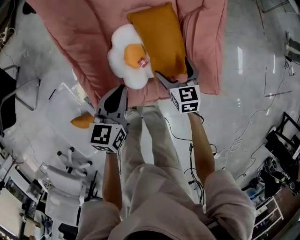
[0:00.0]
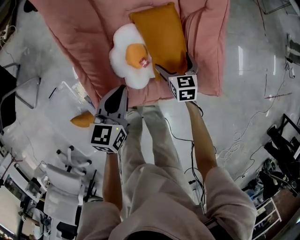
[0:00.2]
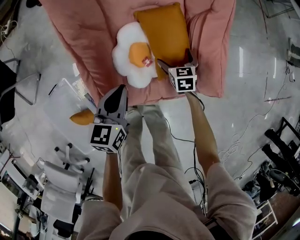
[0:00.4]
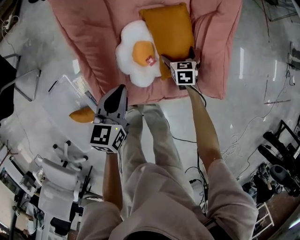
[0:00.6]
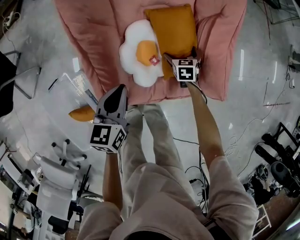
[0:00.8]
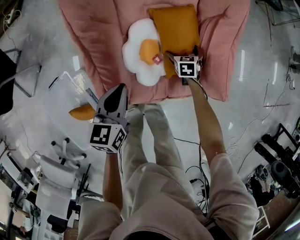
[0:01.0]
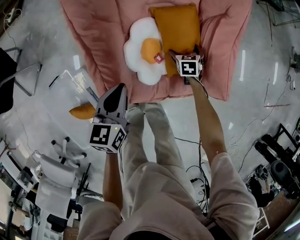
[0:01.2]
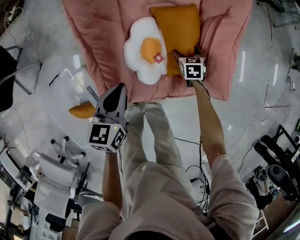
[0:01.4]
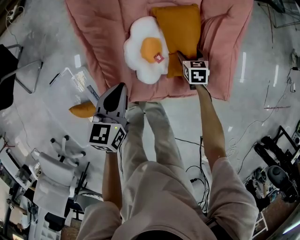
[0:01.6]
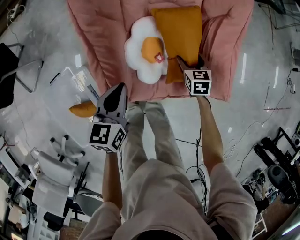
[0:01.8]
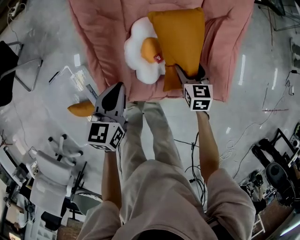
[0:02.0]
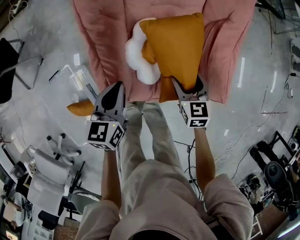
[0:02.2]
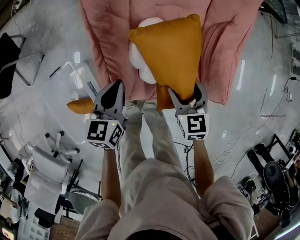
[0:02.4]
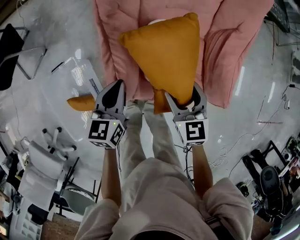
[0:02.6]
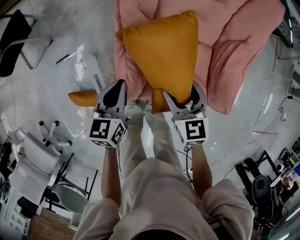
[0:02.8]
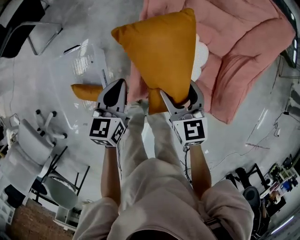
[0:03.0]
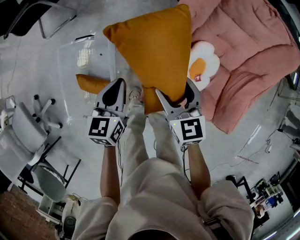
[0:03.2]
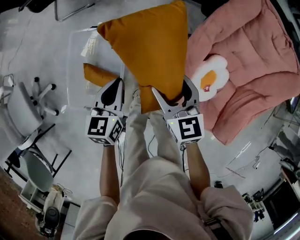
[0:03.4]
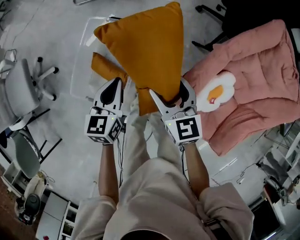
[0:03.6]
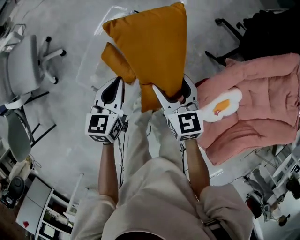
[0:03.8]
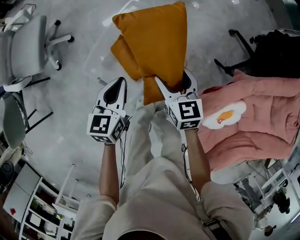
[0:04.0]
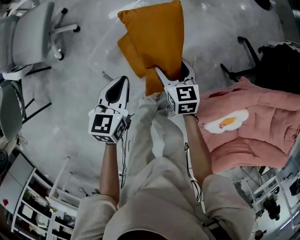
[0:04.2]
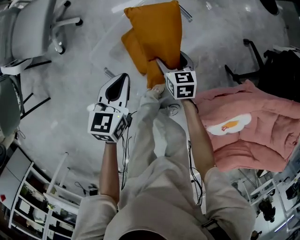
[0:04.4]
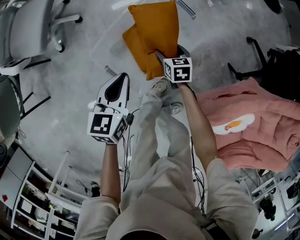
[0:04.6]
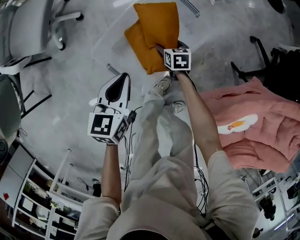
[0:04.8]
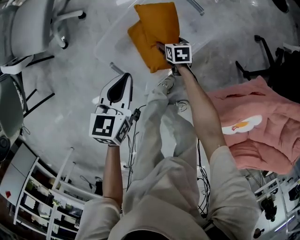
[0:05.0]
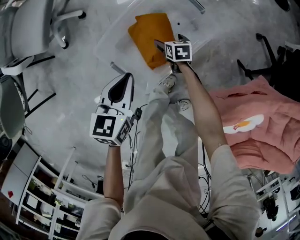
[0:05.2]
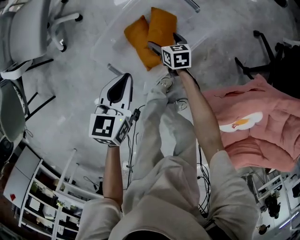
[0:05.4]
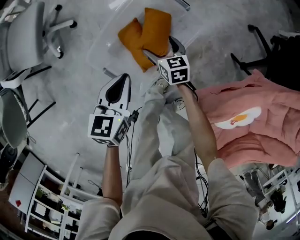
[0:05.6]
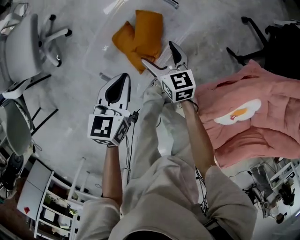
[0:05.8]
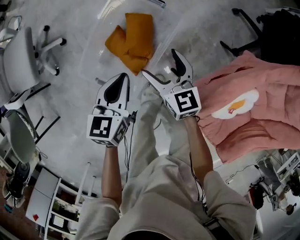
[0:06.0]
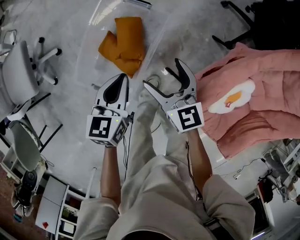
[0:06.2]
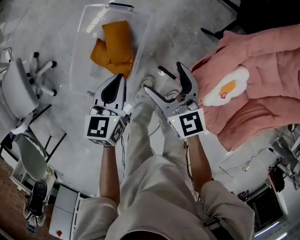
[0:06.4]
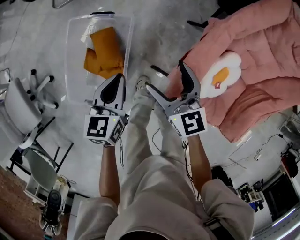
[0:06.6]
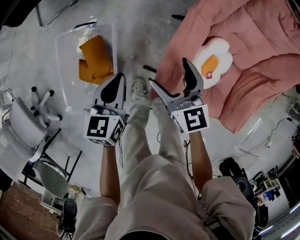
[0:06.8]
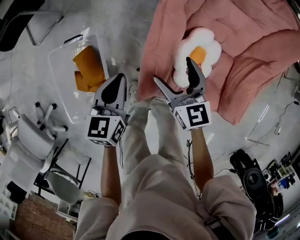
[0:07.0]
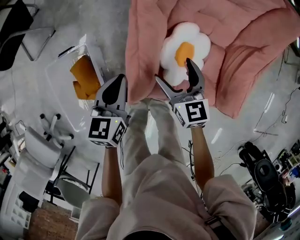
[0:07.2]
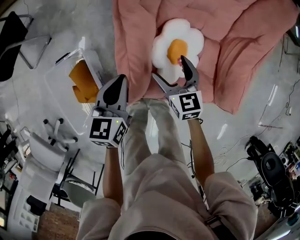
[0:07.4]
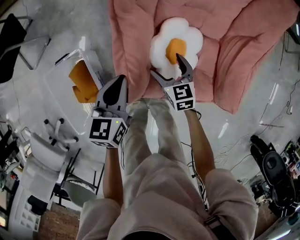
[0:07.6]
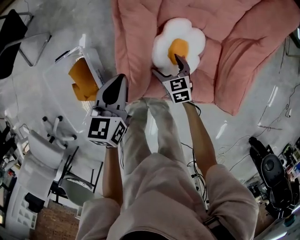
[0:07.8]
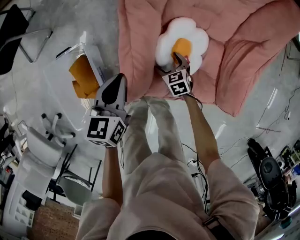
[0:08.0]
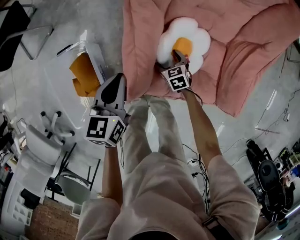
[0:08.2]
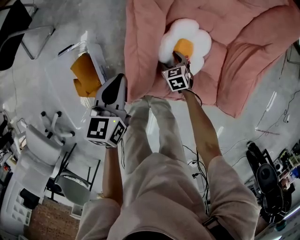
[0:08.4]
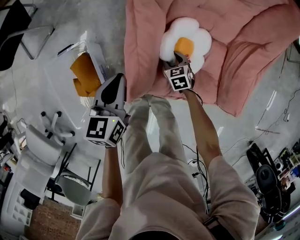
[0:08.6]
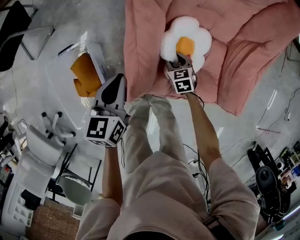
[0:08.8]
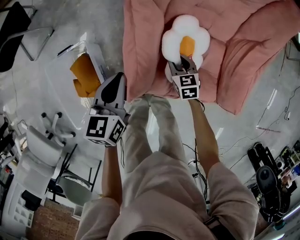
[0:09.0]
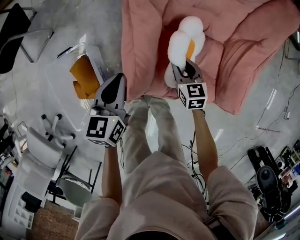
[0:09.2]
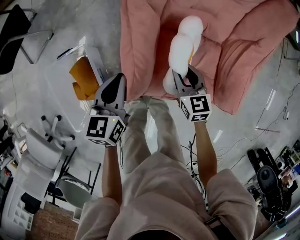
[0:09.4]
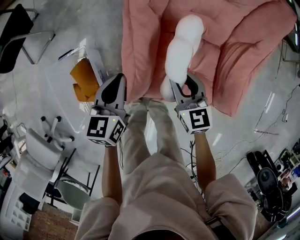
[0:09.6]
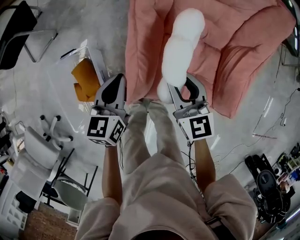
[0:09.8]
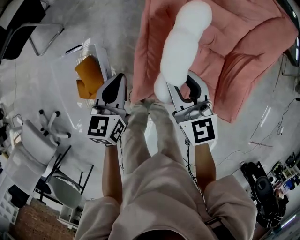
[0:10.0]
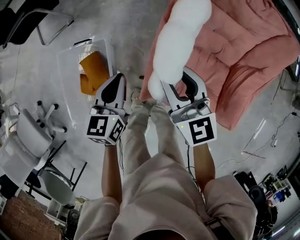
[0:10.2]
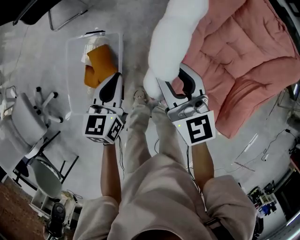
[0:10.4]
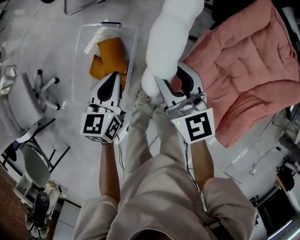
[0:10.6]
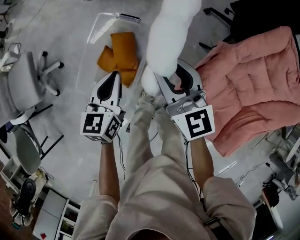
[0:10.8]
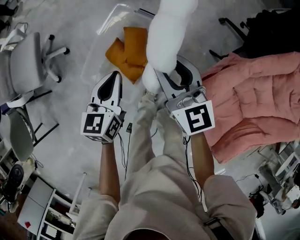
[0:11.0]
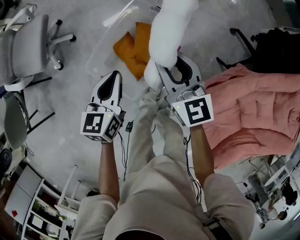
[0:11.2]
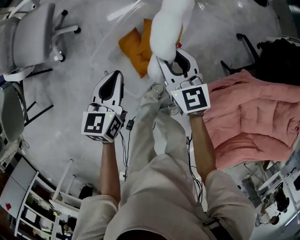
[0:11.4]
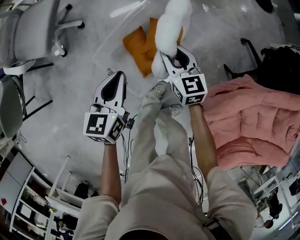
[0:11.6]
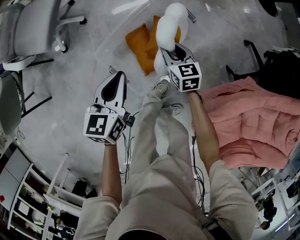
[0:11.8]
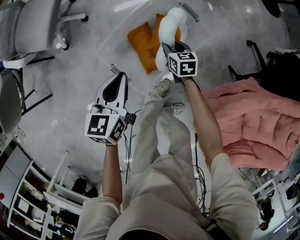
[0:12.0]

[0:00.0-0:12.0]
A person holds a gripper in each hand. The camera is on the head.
0:00.0 to 0:01.6: The right gripper moves downward and forward, approximately 10 cm. Meanwhile the left gripper goes roughly 5 cm to the left.
0:01.6 to 0:03.0: The right gripper changes place by about 35 cm, and turns by approximately 40 degrees, while the left gripper moves roughly 15 cm.
0:03.0 to 0:04.4: Both grippers are carried roughly 50 cm. The left gripper turns by approximately 50 degrees. The right gripper changes its angle by approximately 50 degrees.
0:04.4 to 0:06.0: The left gripper shifts some 10 cm to the right. Meanwhile the right gripper is displaced to the right by about 5 cm, reaches about 15 cm downward, then returns, and turns by roughly 20 degrees.
0:06.0 to 0:07.6: The two grippers travel together, roughly 50 cm. The left gripper changes its angle by roughly 50 degrees; the right gripper changes its angle by about 50 degrees.
0:07.6 to 0:09.0: The right gripper travels downward by roughly 5 cm, and closes up.
0:09.0 to 0:10.4: The left gripper goes roughly 15 cm to the left, and rotates some 20 degrees, while the right gripper shifts some 40 cm upward and to the left, and tilts its fingers roughly 40 degrees upward.
0:10.4 to 0:12.0: The two grippers travel together, some 40 cm. The left gripper rotates approximately 40 degrees. The right gripper tips its fingers downward by approximately 40 degrees.

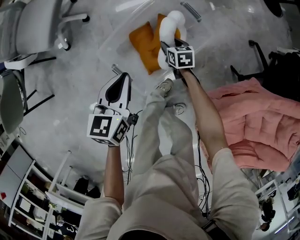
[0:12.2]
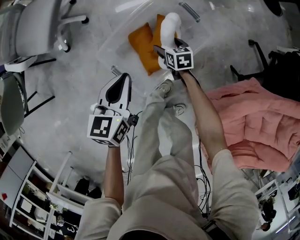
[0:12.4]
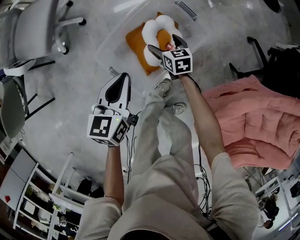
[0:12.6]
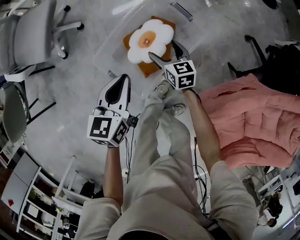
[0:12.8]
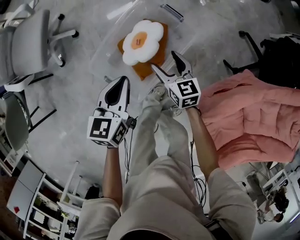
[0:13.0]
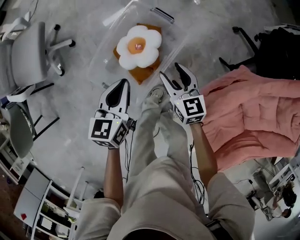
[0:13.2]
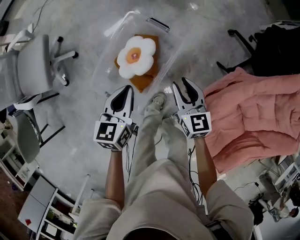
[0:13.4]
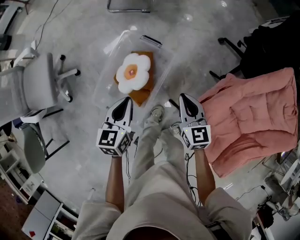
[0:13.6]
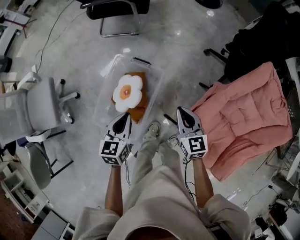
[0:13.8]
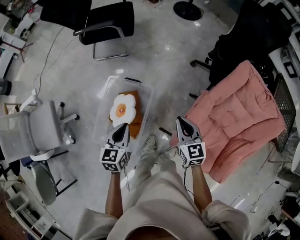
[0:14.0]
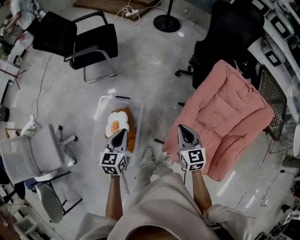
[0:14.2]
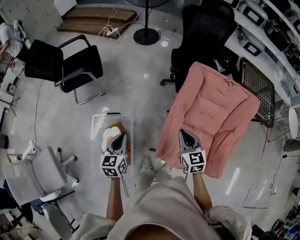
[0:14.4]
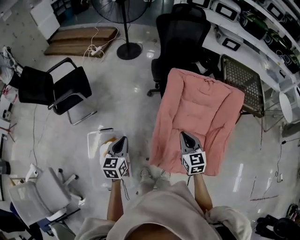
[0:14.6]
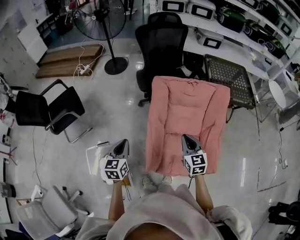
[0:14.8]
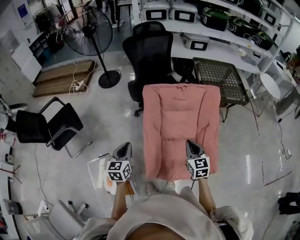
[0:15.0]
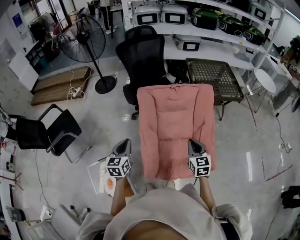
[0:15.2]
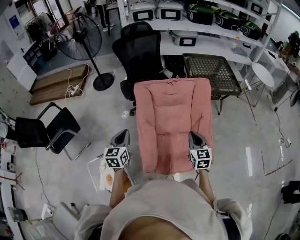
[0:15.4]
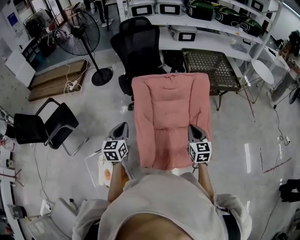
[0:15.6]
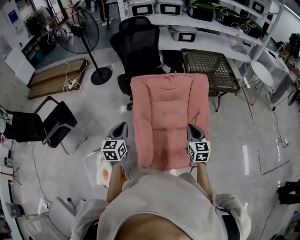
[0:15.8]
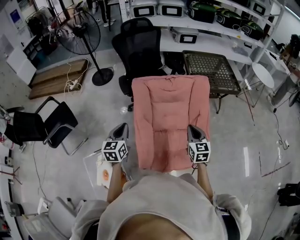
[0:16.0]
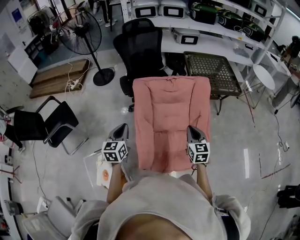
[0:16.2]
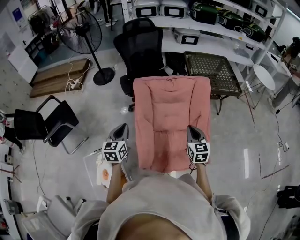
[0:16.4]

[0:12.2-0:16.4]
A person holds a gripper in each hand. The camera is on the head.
0:12.2 to 0:13.6: The left gripper ends up approximately 20 cm from where it was. Meanwhile the right gripper shifts about 30 cm upward, changes its angle by some 40 degrees, and closes up.
0:13.6 to 0:15.0: The right gripper shifts by approximately 60 cm, and rotates approximately 50 degrees. Meanwhile the left gripper moves approximately 50 cm, and changes its angle by some 50 degrees.
0:15.0 to 0:16.4: Both grippers move to the right, roughly 5 cm.

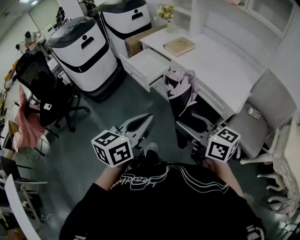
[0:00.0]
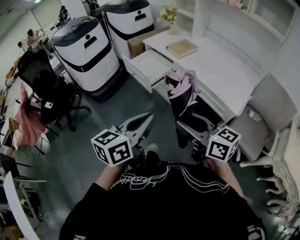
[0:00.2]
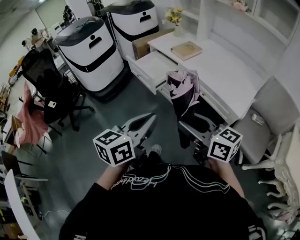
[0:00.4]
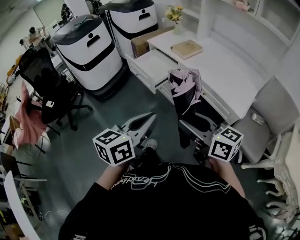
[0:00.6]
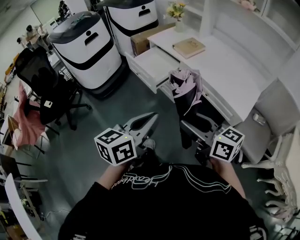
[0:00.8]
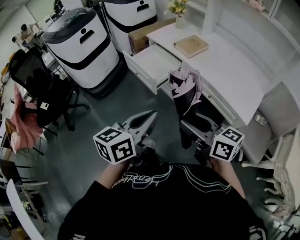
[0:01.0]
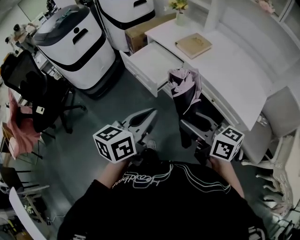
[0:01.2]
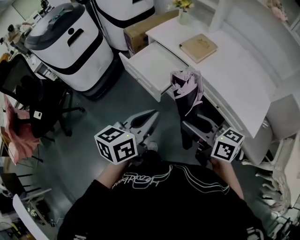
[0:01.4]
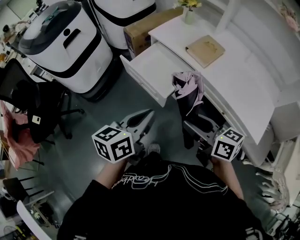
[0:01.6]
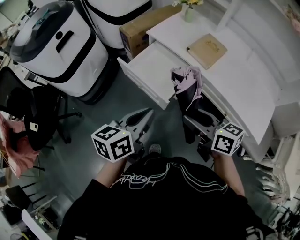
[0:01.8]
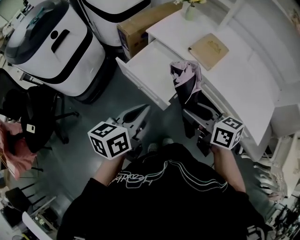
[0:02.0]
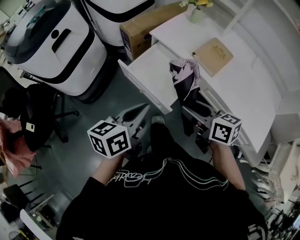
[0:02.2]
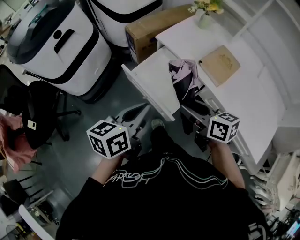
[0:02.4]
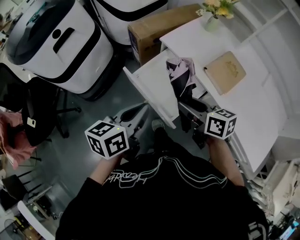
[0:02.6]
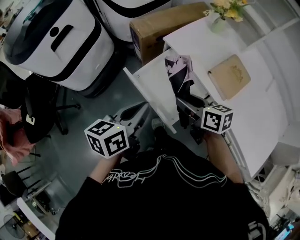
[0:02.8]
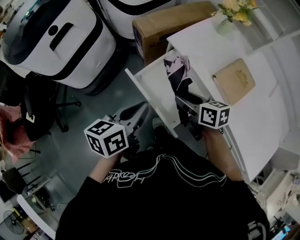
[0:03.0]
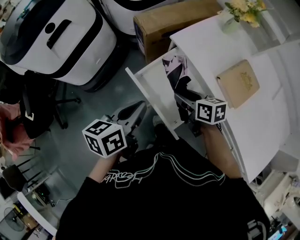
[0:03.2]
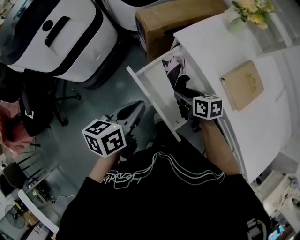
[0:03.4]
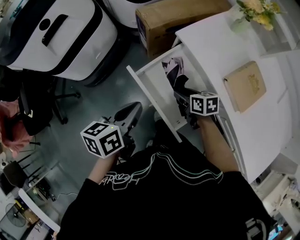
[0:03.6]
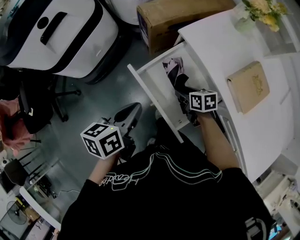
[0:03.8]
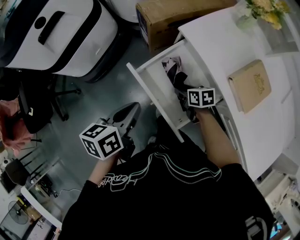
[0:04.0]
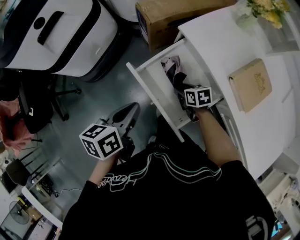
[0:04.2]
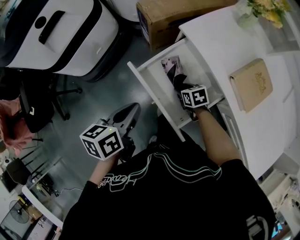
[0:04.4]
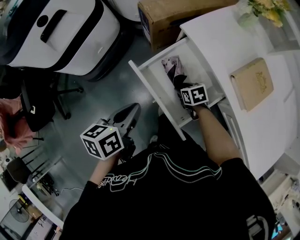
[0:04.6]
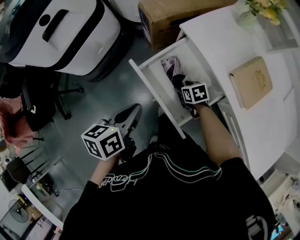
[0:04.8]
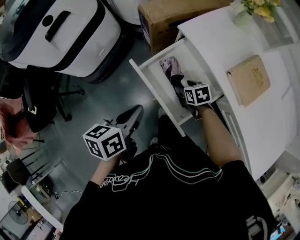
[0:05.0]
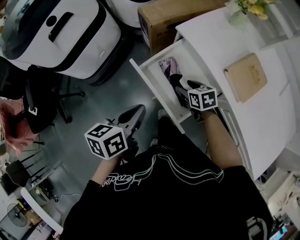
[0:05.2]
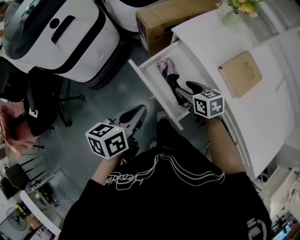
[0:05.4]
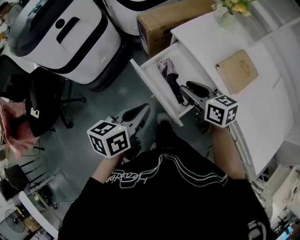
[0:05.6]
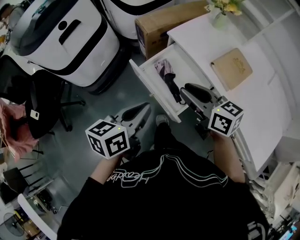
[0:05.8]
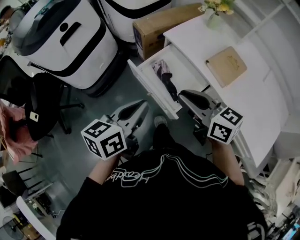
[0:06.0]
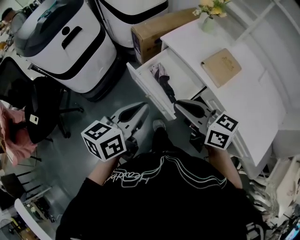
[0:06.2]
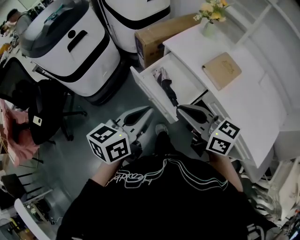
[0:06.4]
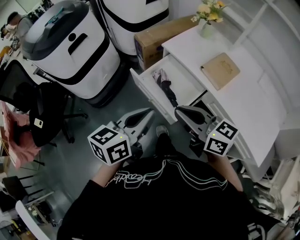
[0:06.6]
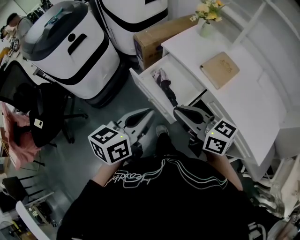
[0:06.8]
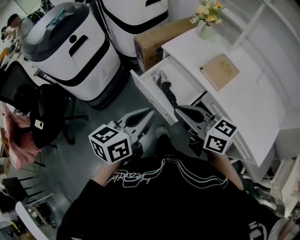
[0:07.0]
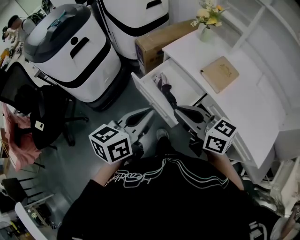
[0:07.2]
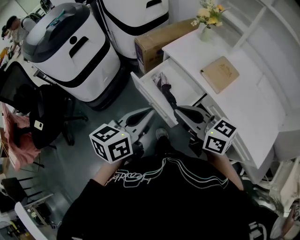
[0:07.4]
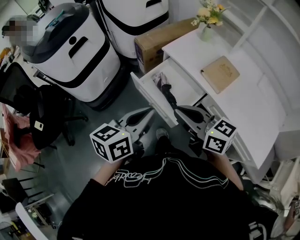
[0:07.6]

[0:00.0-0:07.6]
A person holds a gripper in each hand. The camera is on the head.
0:00.0 to 0:01.6: The left gripper travels forward and to the left by some 40 cm; the right gripper goes roughly 35 cm forward.
0:01.6 to 0:03.0: The left gripper shifts roughly 30 cm forward. The right gripper travels forward and downward by roughly 40 cm.
0:03.0 to 0:04.6: The right gripper travels downward by roughly 25 cm, and changes its angle by approximately 30 degrees. Meanwhile the left gripper moves downward, about 10 cm.
0:04.6 to 0:06.0: The left gripper moves upward and backward, about 20 cm, and turns by roughly 20 degrees; the right gripper heads upward and backward, covering some 40 cm, angles its fingers upward, by approximately 50 degrees, and closes.
0:06.0 to 0:07.6: The right gripper is displaced backward by roughly 5 cm, while the left gripper moves roughly 5 cm.
